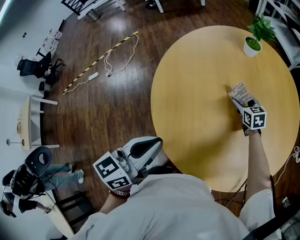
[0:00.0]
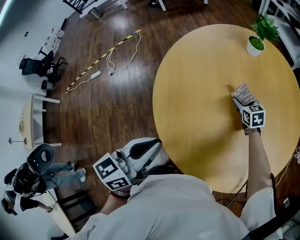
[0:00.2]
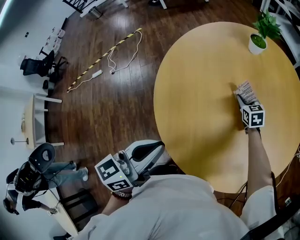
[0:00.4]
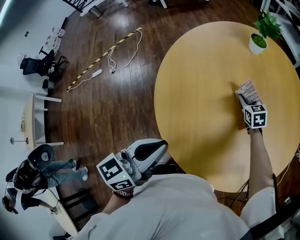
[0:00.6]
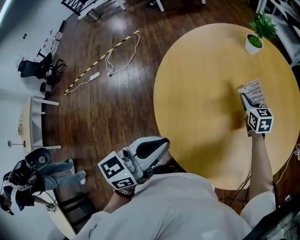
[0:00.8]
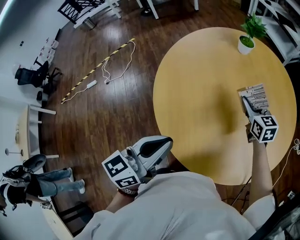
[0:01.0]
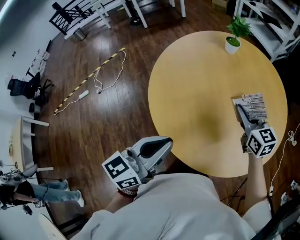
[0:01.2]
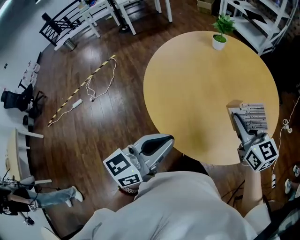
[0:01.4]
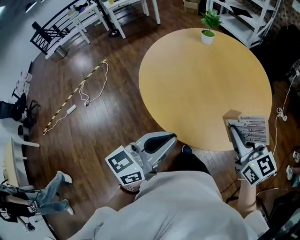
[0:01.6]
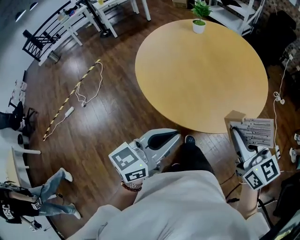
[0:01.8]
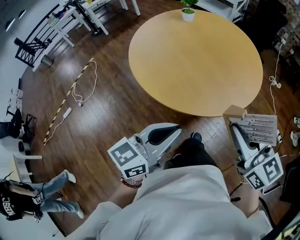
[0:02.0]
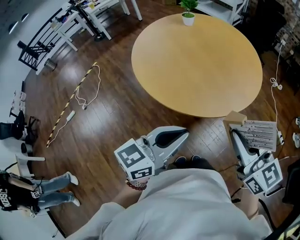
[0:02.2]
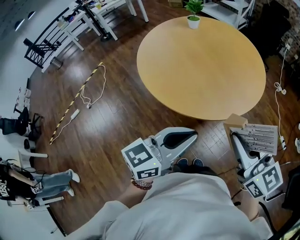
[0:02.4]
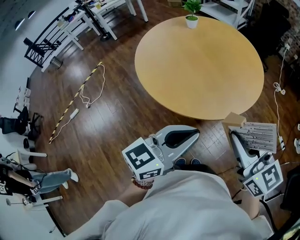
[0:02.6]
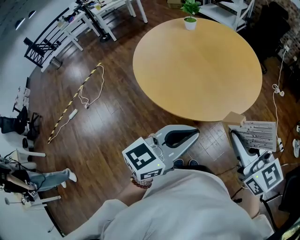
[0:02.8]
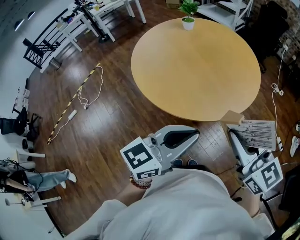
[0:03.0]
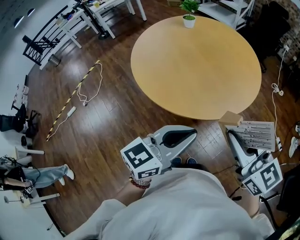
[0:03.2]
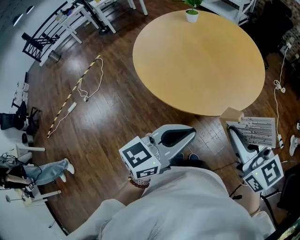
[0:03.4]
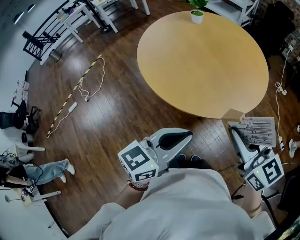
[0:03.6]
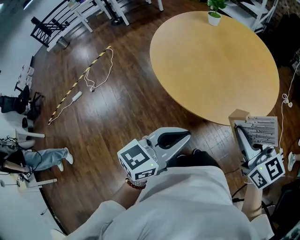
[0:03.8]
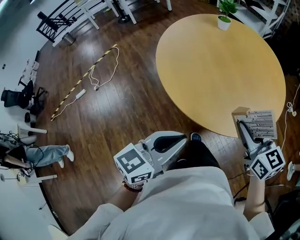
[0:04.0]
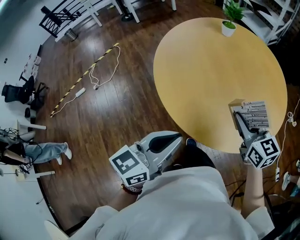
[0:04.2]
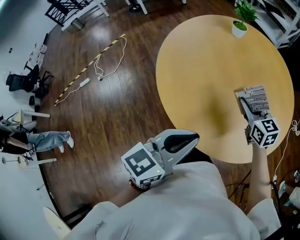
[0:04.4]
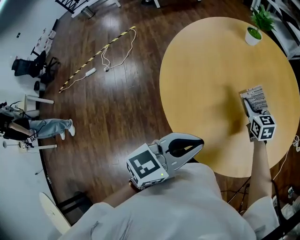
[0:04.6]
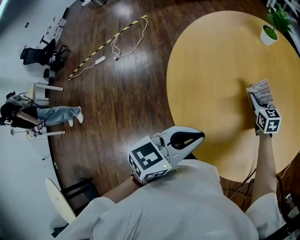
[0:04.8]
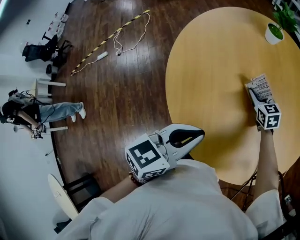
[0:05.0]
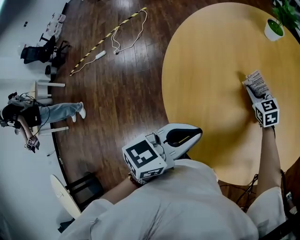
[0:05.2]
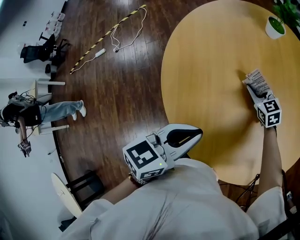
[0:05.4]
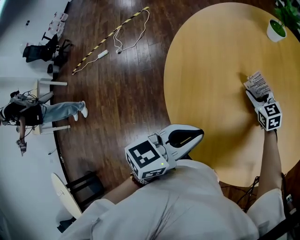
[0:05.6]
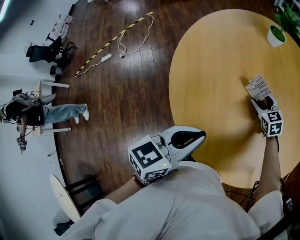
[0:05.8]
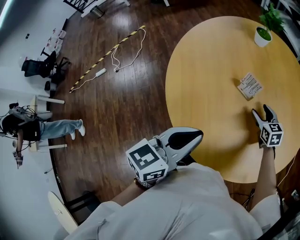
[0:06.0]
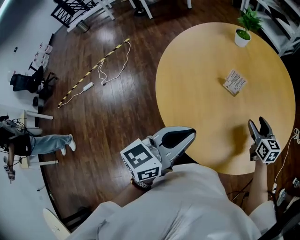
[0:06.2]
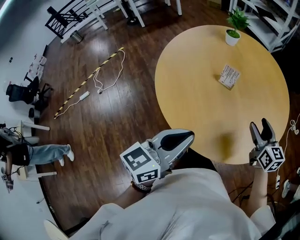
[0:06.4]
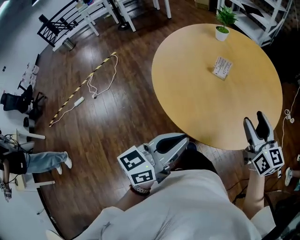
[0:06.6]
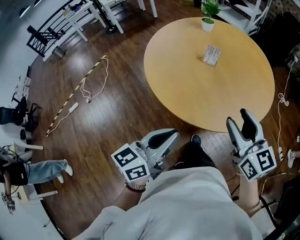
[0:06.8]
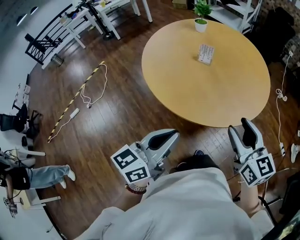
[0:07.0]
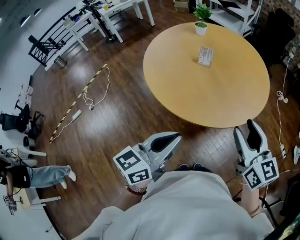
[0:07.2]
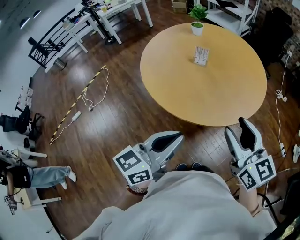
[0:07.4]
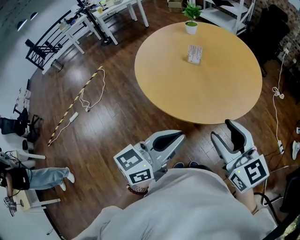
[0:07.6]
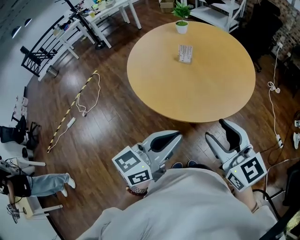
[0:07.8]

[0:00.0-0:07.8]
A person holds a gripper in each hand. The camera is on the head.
0:00.0 to 0:01.6: The right gripper is displaced backward and upward by approximately 50 cm, points its fingers some 30 degrees further upward, and closes up. Meanwhile the left gripper travels backward by approximately 20 cm, and swivels some 30 degrees.
0:01.6 to 0:03.2: The right gripper shifts some 20 cm backward; the left gripper heads to the right and backward, covering some 15 cm.
0:03.2 to 0:04.6: The left gripper travels forward by about 25 cm, and swivels approximately 20 degrees; the right gripper heads forward and downward, covering about 60 cm, and turns by roughly 30 degrees.
0:04.6 to 0:06.2: The right gripper travels backward and to the right by some 10 cm, and opens up, while the left gripper goes forward and returns, roughly 10 cm each way.
0:06.2 to 0:07.8: The left gripper shifts some 30 cm backward. The right gripper travels backward and upward by roughly 50 cm, and changes its angle by about 20 degrees.

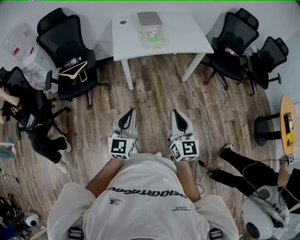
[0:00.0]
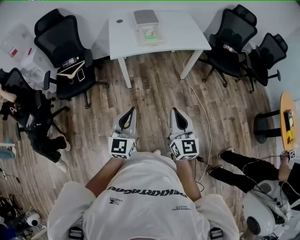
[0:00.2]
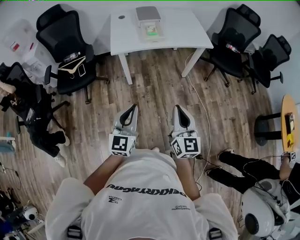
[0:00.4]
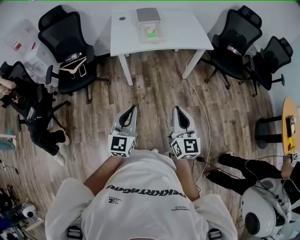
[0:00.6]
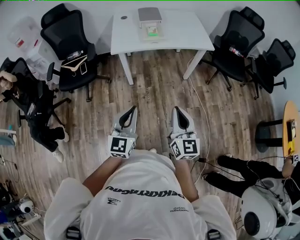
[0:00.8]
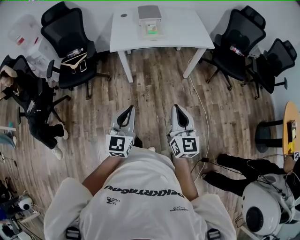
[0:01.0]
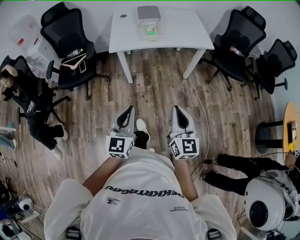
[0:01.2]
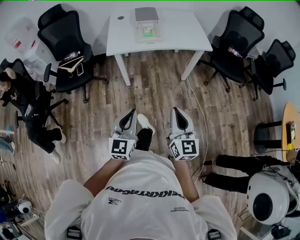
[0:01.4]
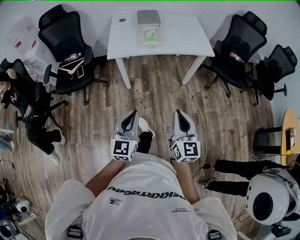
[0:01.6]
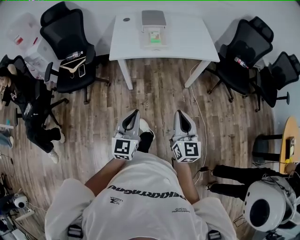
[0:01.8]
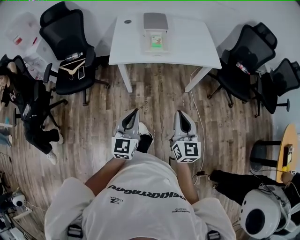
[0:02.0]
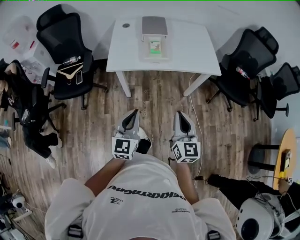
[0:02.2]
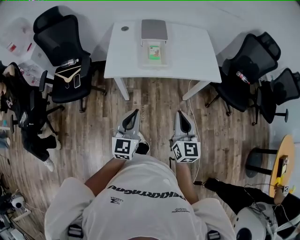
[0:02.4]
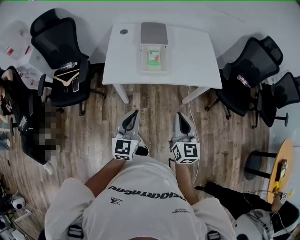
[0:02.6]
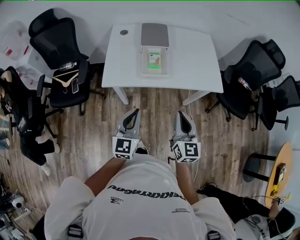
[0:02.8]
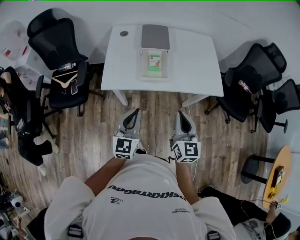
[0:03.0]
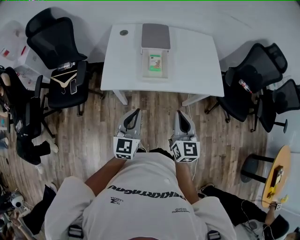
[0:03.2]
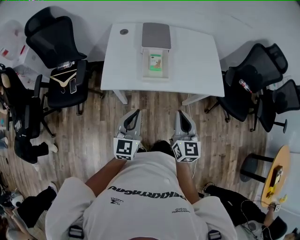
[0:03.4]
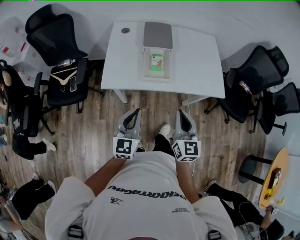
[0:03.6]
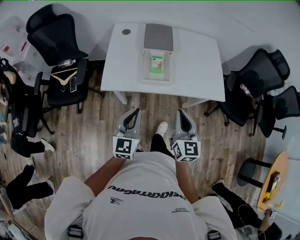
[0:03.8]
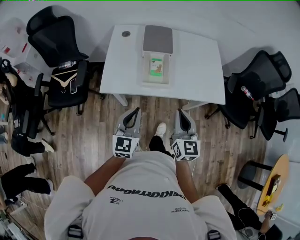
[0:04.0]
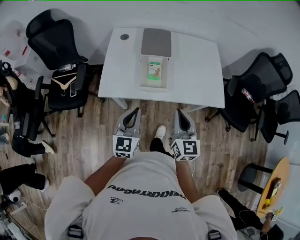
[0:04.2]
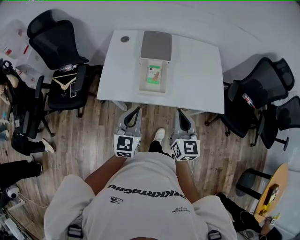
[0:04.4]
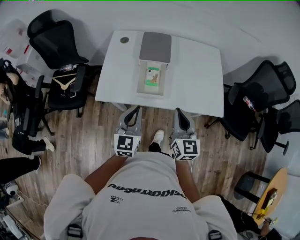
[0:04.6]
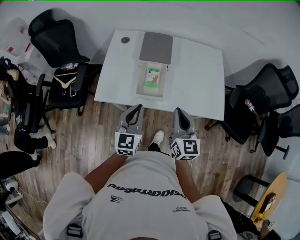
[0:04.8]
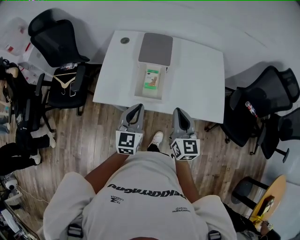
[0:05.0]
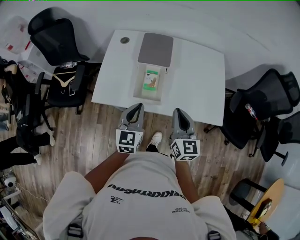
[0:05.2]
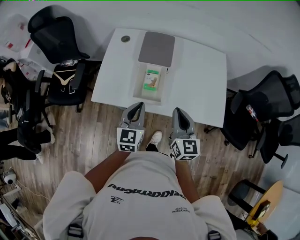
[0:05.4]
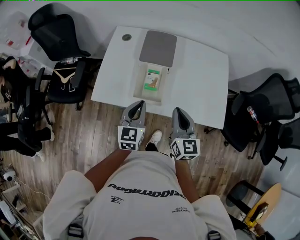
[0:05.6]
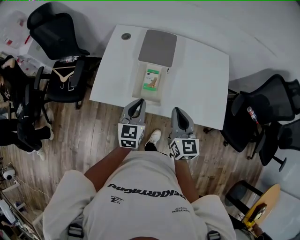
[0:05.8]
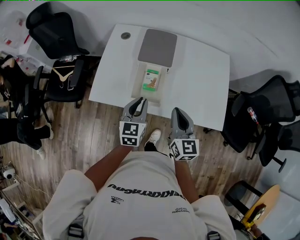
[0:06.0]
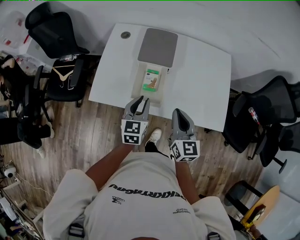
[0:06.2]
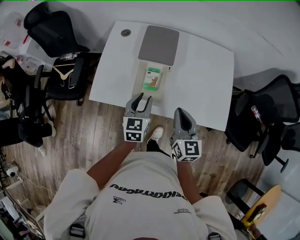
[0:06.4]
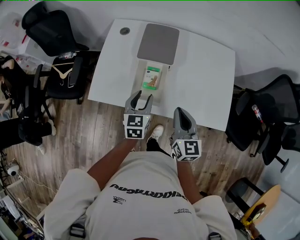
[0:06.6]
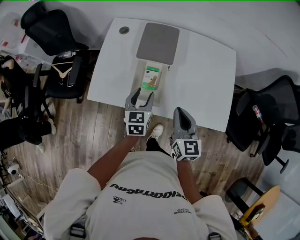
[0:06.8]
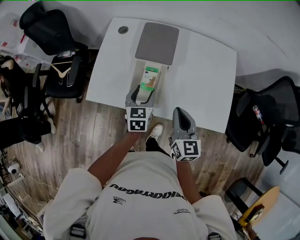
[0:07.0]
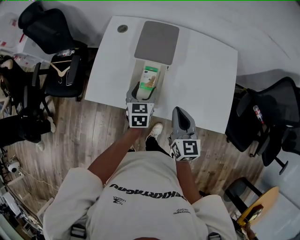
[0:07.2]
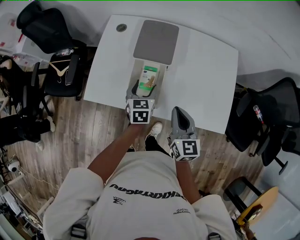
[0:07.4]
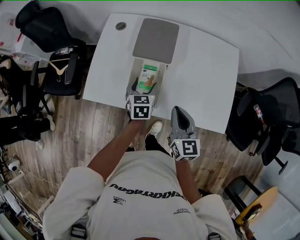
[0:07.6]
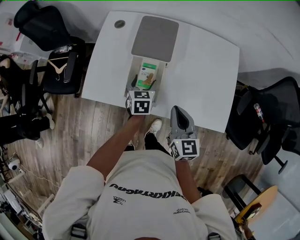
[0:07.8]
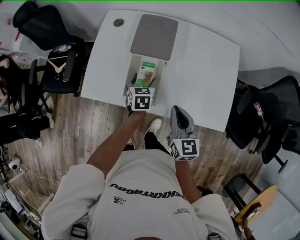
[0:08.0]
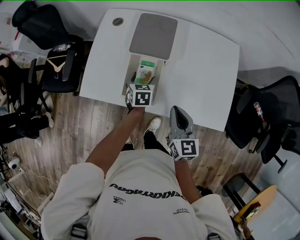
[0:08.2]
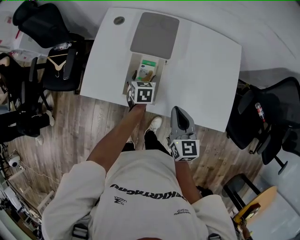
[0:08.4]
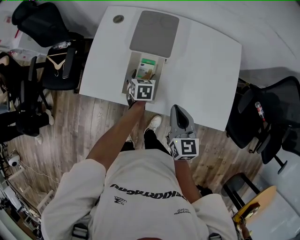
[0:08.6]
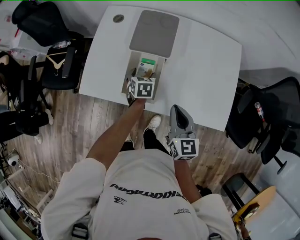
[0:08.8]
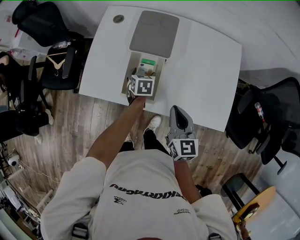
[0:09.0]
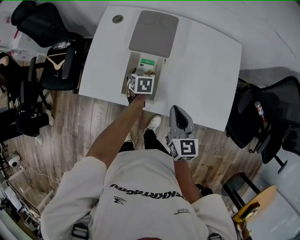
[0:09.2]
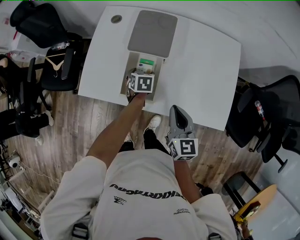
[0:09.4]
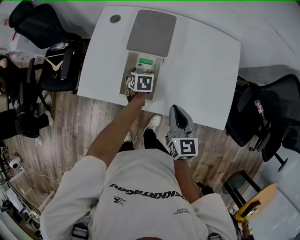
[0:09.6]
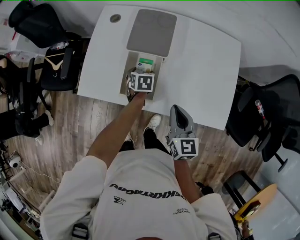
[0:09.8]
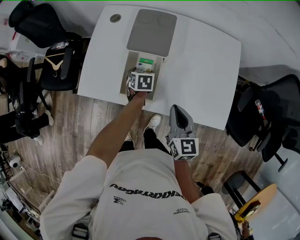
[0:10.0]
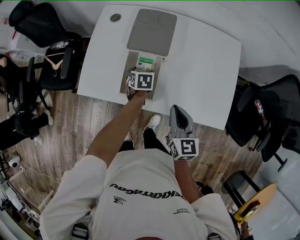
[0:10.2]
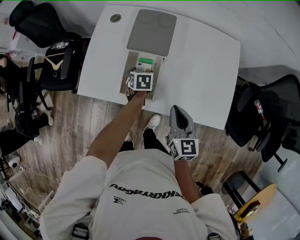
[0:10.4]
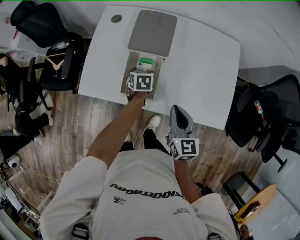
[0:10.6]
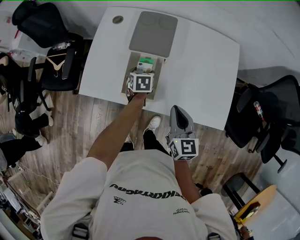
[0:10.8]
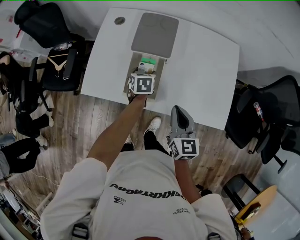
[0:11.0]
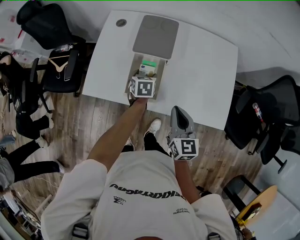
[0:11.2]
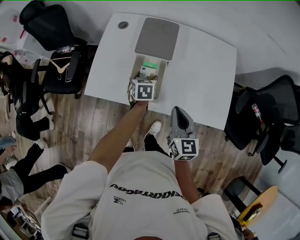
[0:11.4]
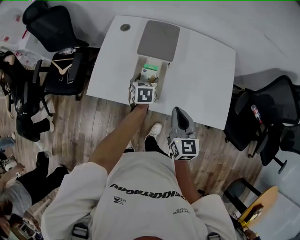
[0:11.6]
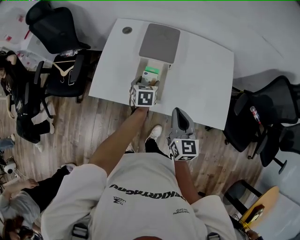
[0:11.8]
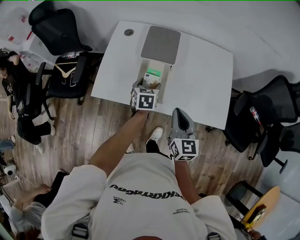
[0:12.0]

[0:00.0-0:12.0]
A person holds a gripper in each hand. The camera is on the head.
0:00.0 to 0:01.6: Both grippers travel together to the right, some 10 cm.
0:01.6 to 0:03.0: The grippers both shift forward by approximately 35 cm.
0:03.0 to 0:04.4: Both grippers travel together forward, approximately 10 cm.
0:04.4 to 0:06.0: The right gripper travels forward by some 10 cm; the left gripper shifts about 15 cm forward, to the right and downward.
0:06.0 to 0:07.6: The right gripper moves roughly 5 cm, while the left gripper shifts about 15 cm forward and downward, rotates approximately 20 degrees, and opens.
0:07.6 to 0:09.0: The left gripper is displaced downward by roughly 10 cm.
0:09.0 to 0:10.4: The grippers make only small movements.
0:10.4 to 0:12.0: The right gripper is displaced upward by about 5 cm; the left gripper moves upward and backward, some 15 cm.

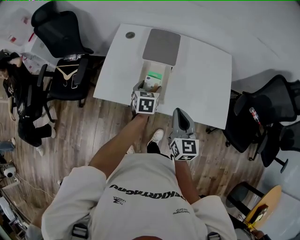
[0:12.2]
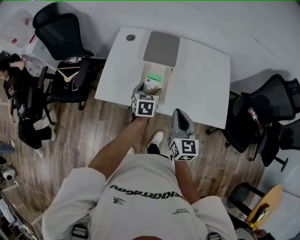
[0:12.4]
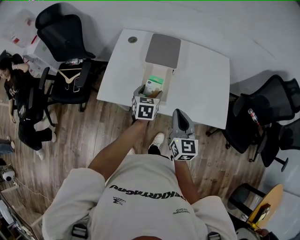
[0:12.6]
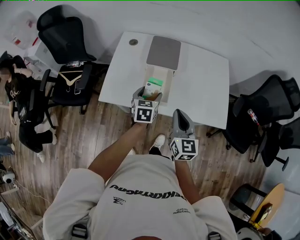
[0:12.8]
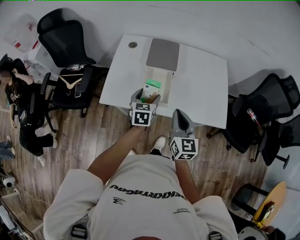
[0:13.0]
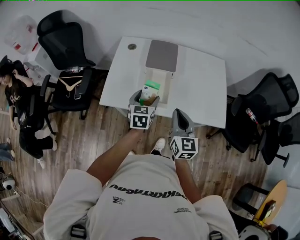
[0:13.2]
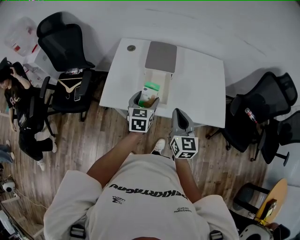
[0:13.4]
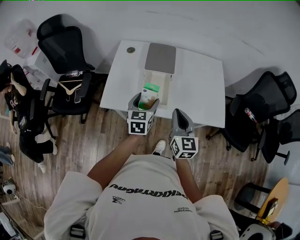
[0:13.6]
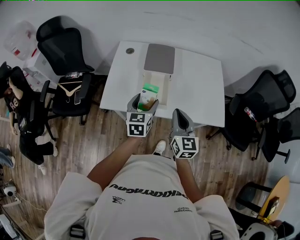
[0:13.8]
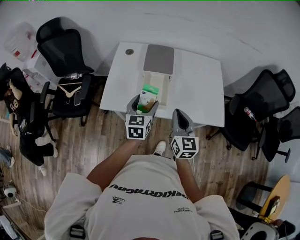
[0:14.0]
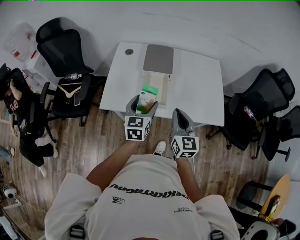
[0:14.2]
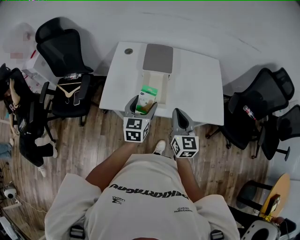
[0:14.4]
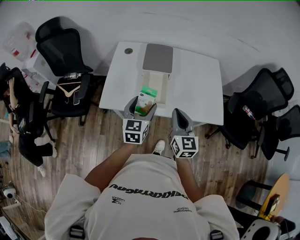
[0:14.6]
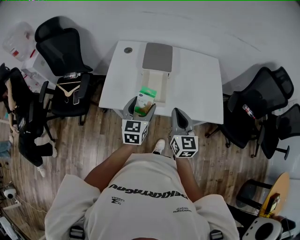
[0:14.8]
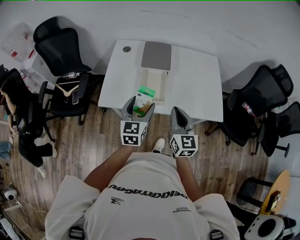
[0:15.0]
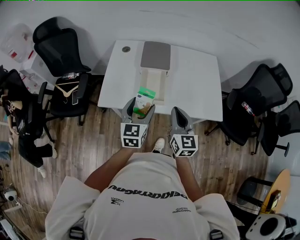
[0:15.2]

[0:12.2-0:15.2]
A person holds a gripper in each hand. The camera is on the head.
0:12.2 to 0:13.8: The right gripper changes place by about 5 cm, while the left gripper shifts approximately 15 cm upward and backward.
0:13.8 to 0:15.2: The left gripper travels backward by approximately 5 cm.

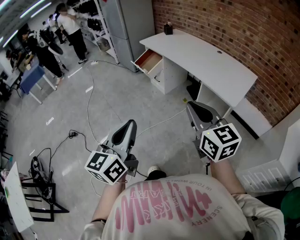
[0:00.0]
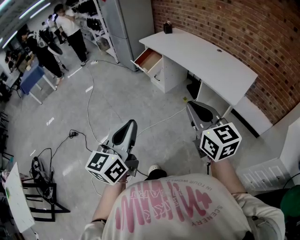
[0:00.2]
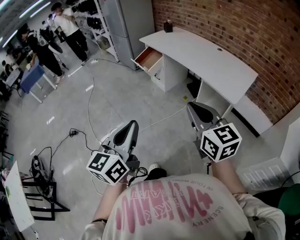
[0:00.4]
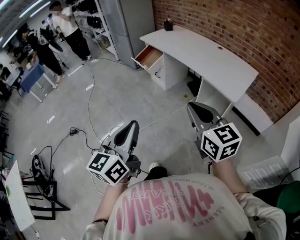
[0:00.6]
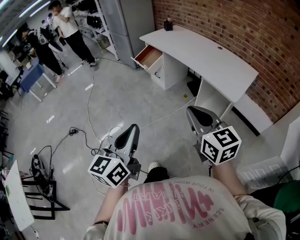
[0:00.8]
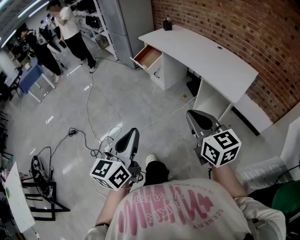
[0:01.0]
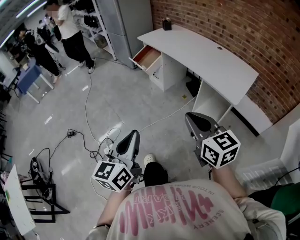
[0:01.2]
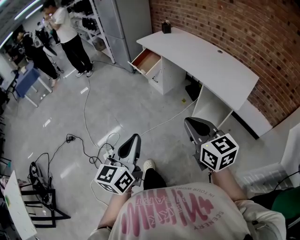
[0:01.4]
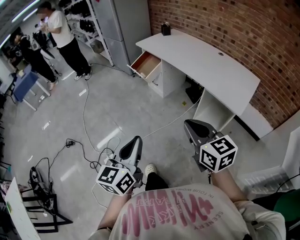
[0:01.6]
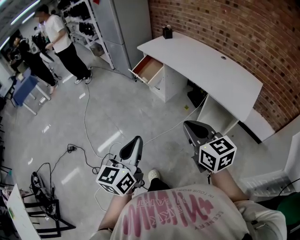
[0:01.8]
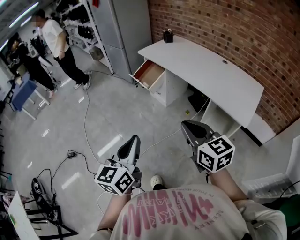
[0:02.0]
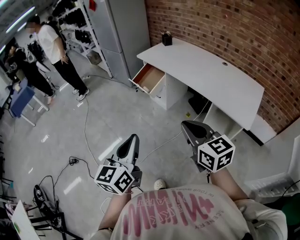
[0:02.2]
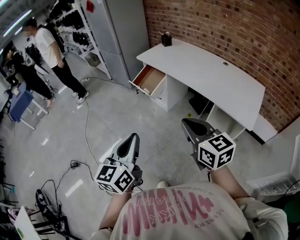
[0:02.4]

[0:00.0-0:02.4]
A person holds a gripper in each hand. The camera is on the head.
0:00.0 to 0:01.2: Both grippers travel together downward, some 5 cm.
0:01.2 to 0:02.4: Both grippers travel together forward and to the left, about 25 cm.
